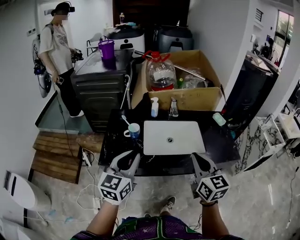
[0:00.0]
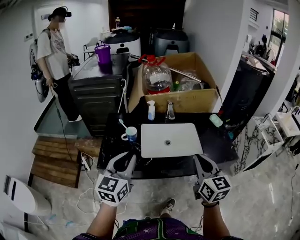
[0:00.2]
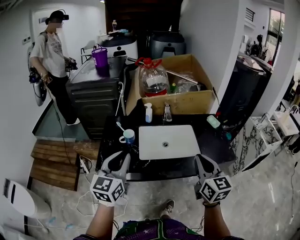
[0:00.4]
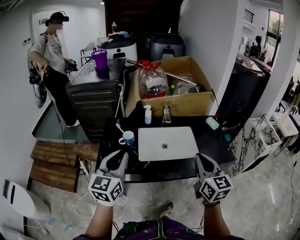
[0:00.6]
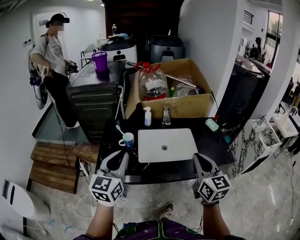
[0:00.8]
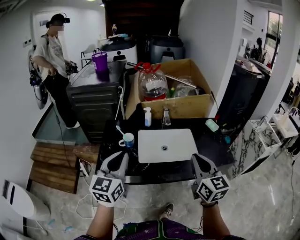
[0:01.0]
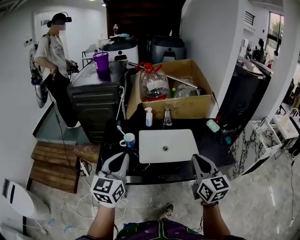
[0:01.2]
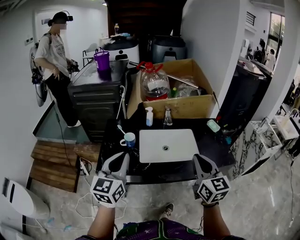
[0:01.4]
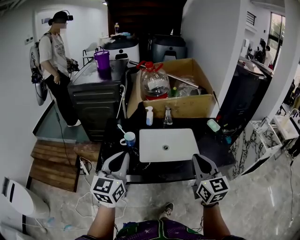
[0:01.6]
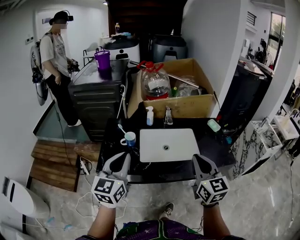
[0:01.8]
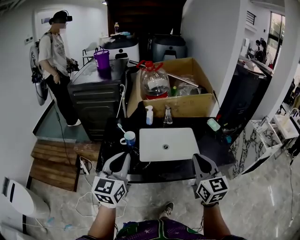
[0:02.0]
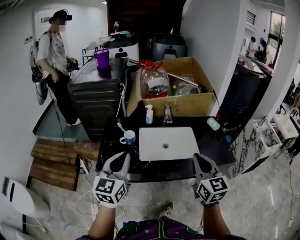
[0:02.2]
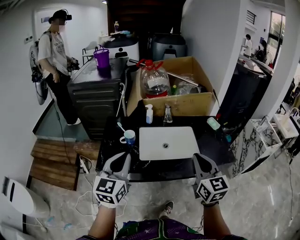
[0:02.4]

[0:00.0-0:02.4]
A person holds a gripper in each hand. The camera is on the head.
0:00.0 to 0:02.4: There are only small adjustments of the grippers.

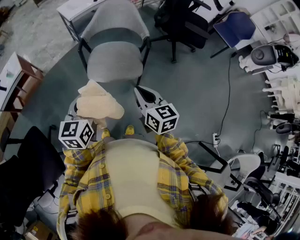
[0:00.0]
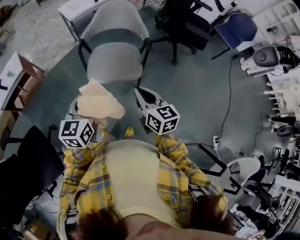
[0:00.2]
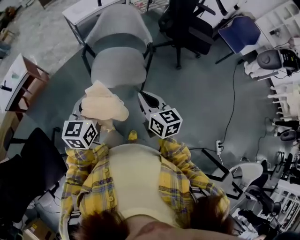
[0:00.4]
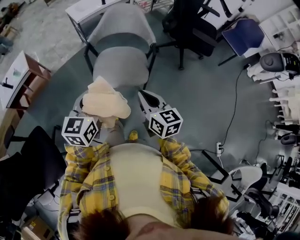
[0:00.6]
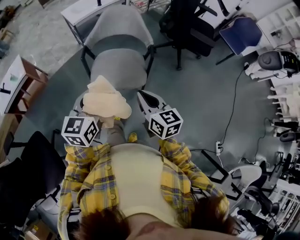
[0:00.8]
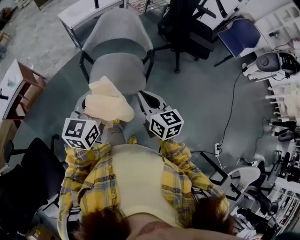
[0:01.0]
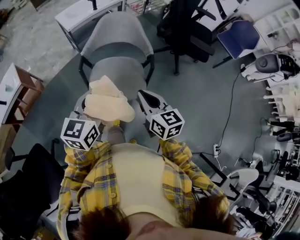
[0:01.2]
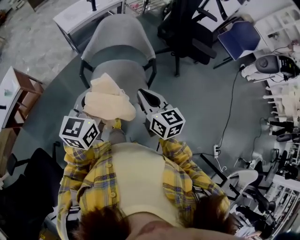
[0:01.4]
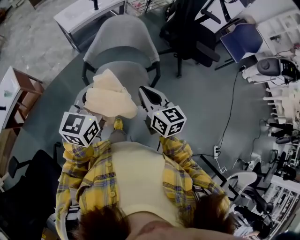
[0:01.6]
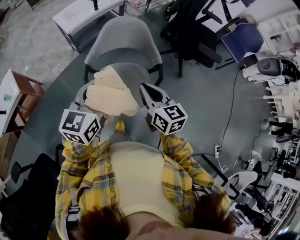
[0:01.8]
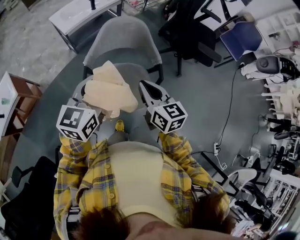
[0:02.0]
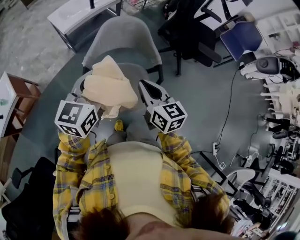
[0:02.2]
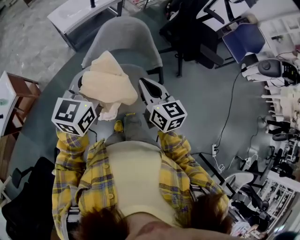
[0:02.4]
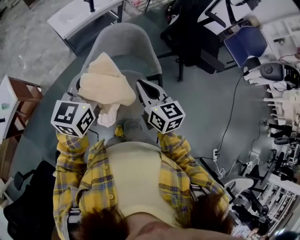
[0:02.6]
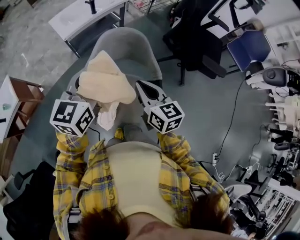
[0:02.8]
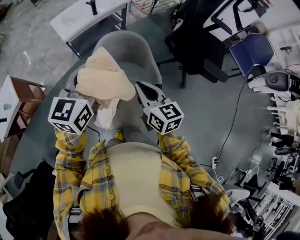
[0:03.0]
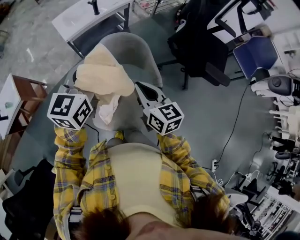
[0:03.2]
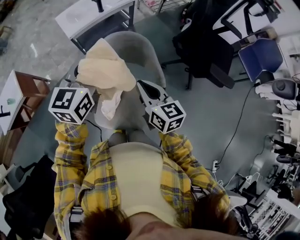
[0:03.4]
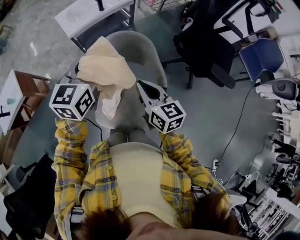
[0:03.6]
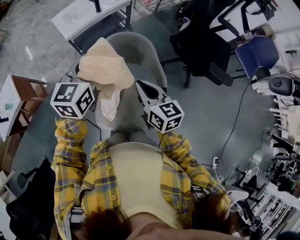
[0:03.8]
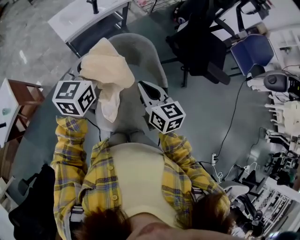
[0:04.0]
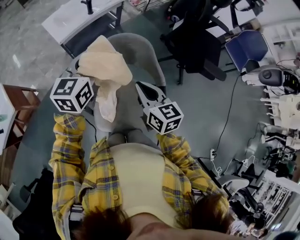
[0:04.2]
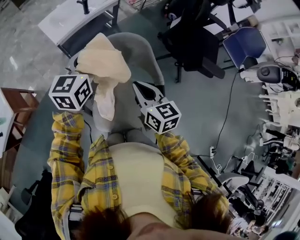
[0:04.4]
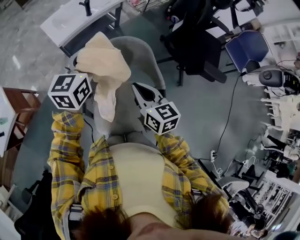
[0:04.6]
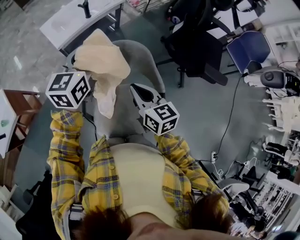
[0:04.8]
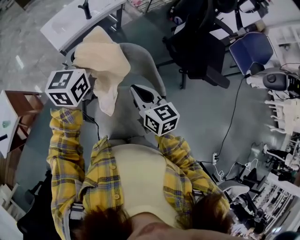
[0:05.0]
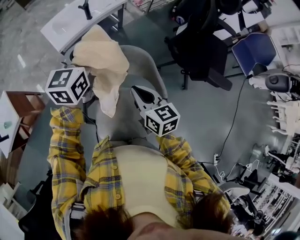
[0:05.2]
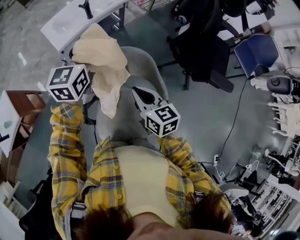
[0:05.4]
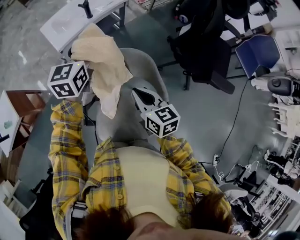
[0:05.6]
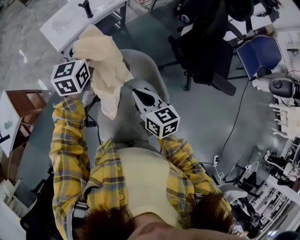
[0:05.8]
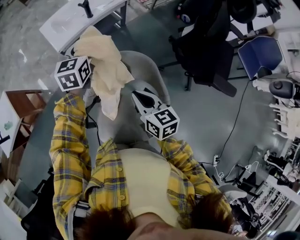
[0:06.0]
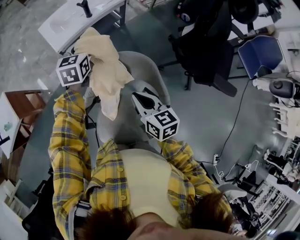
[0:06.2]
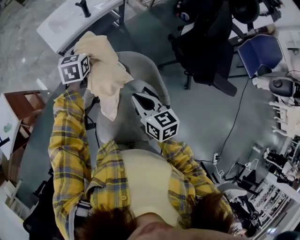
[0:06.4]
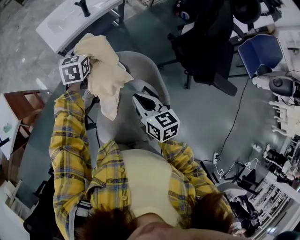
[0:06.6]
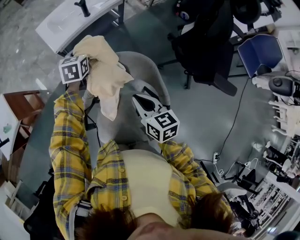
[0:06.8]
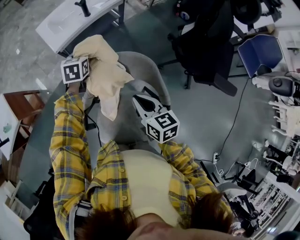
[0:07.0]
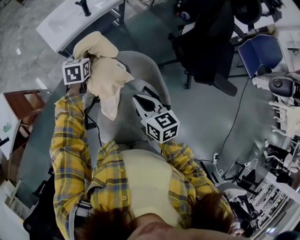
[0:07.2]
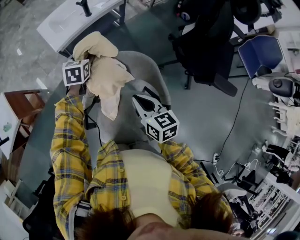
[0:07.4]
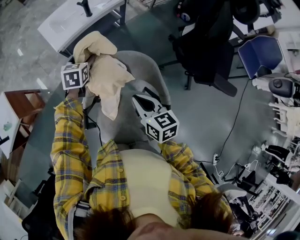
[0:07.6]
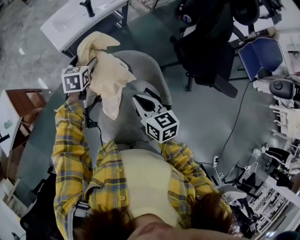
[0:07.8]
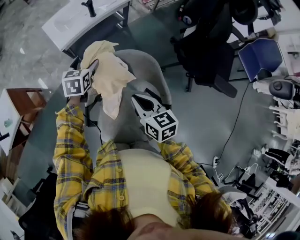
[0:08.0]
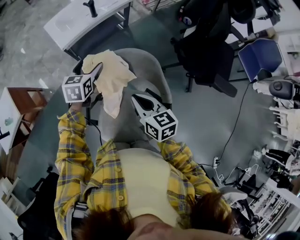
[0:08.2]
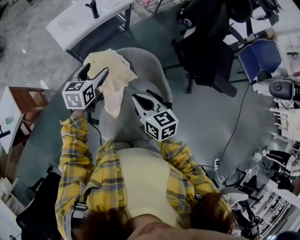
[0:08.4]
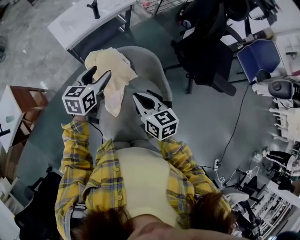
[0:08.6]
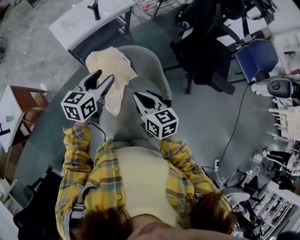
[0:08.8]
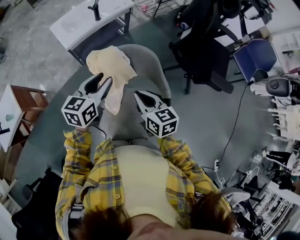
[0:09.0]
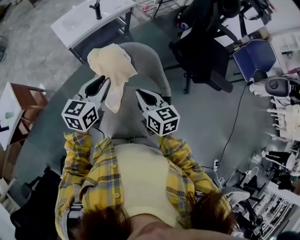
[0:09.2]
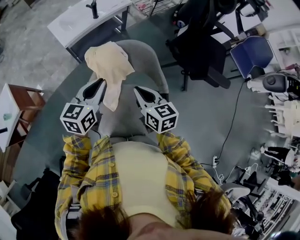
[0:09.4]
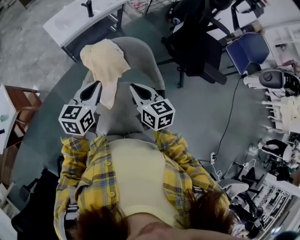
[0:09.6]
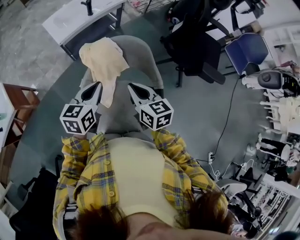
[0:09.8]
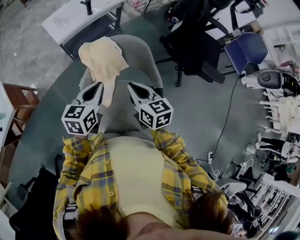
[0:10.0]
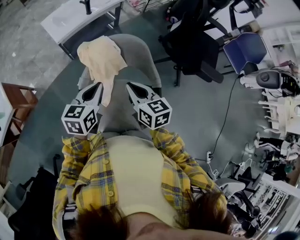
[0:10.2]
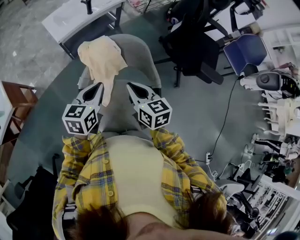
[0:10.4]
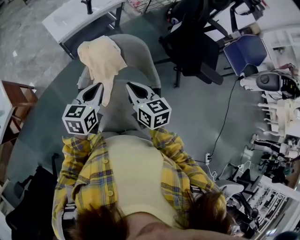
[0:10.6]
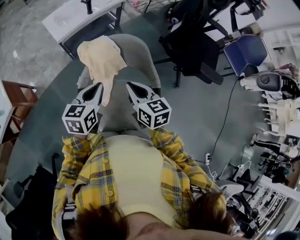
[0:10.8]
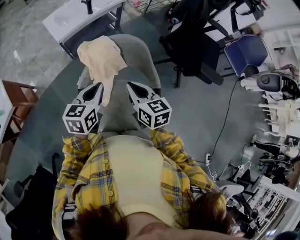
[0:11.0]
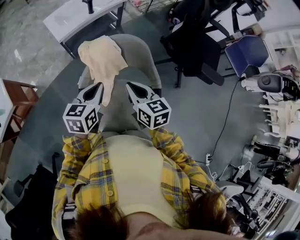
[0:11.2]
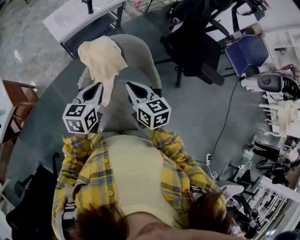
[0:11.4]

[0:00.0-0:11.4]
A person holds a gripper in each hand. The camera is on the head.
0:00.0 to 0:01.4: Both grippers move forward, some 20 cm.
0:01.4 to 0:02.8: The two grippers go about 20 cm forward.
0:02.8 to 0:04.2: The left gripper travels forward by roughly 15 cm. The right gripper moves forward, approximately 5 cm.
0:04.2 to 0:05.6: The right gripper is displaced forward by roughly 10 cm; the left gripper moves forward, about 15 cm.
0:05.6 to 0:07.2: The left gripper is displaced downward by roughly 20 cm, rotates about 30 degrees, and opens.
0:07.2 to 0:08.6: The left gripper heads backward and upward, covering roughly 20 cm, and changes its angle by some 20 degrees.
0:08.6 to 0:10.0: The left gripper is displaced backward by approximately 15 cm, and closes.
0:10.0 to 0:11.4: The two grippers keep their place.

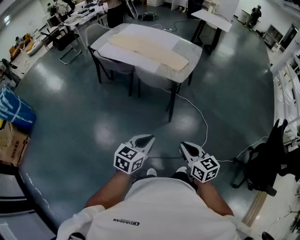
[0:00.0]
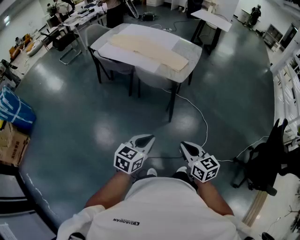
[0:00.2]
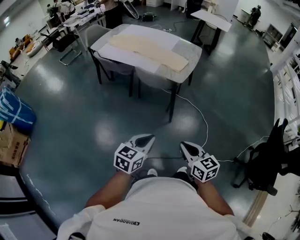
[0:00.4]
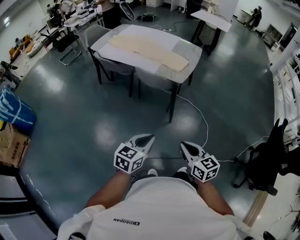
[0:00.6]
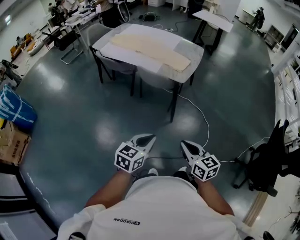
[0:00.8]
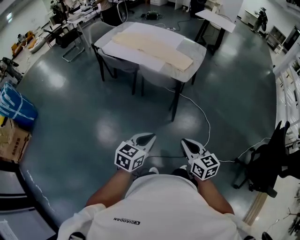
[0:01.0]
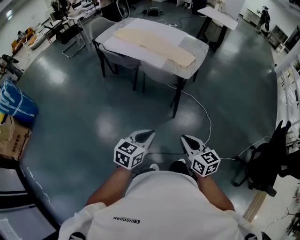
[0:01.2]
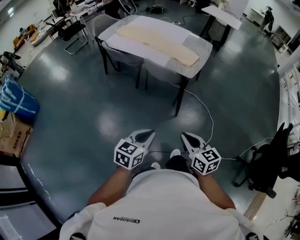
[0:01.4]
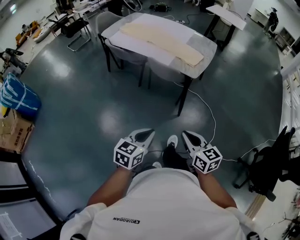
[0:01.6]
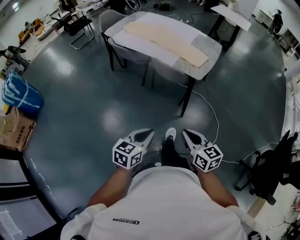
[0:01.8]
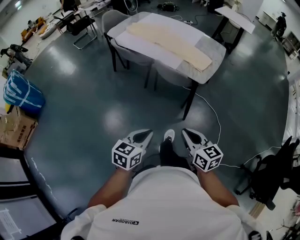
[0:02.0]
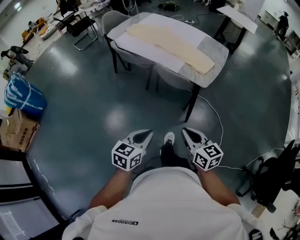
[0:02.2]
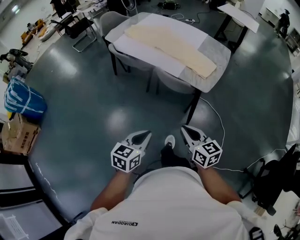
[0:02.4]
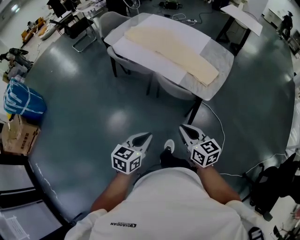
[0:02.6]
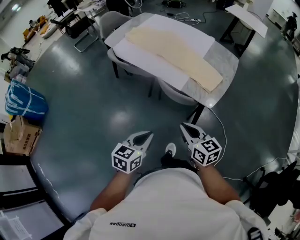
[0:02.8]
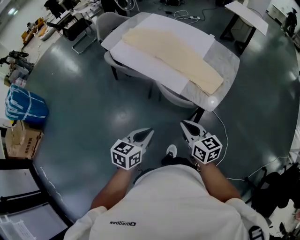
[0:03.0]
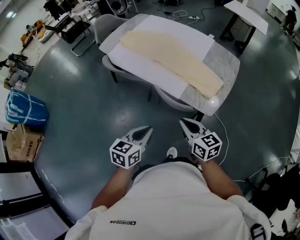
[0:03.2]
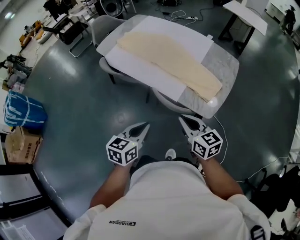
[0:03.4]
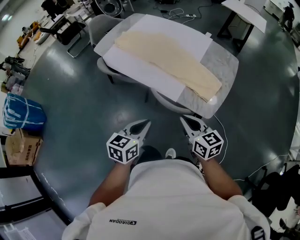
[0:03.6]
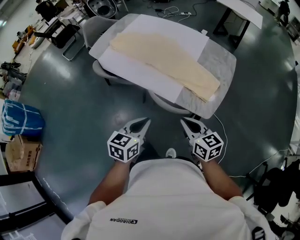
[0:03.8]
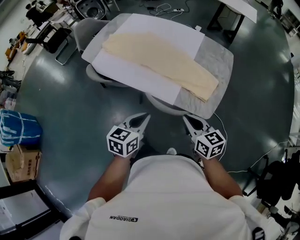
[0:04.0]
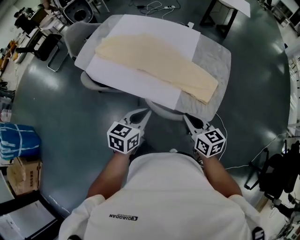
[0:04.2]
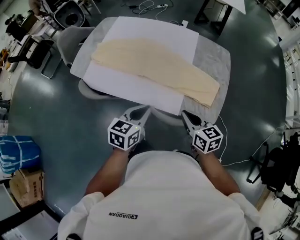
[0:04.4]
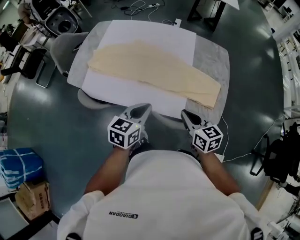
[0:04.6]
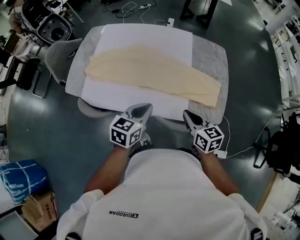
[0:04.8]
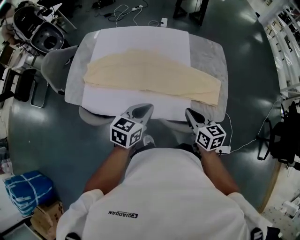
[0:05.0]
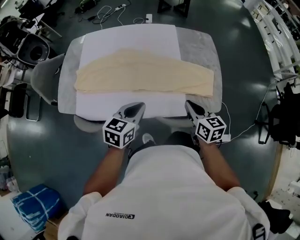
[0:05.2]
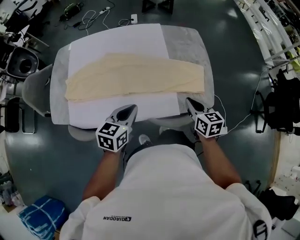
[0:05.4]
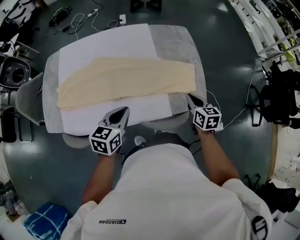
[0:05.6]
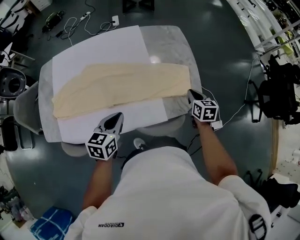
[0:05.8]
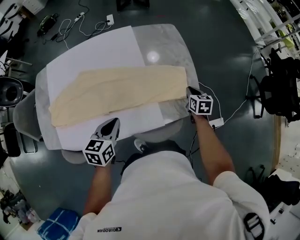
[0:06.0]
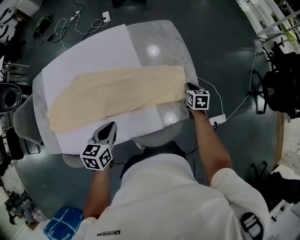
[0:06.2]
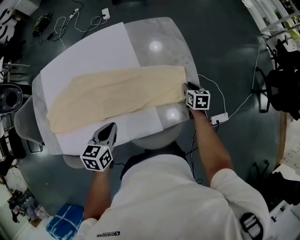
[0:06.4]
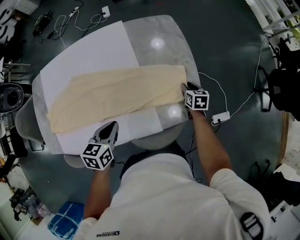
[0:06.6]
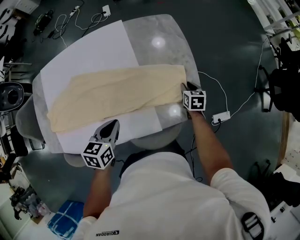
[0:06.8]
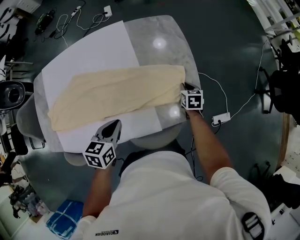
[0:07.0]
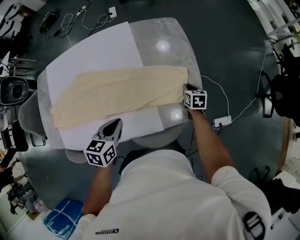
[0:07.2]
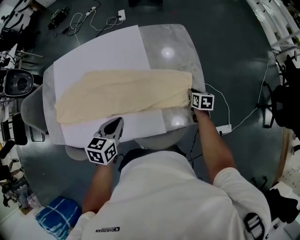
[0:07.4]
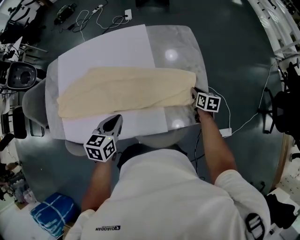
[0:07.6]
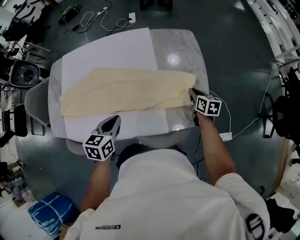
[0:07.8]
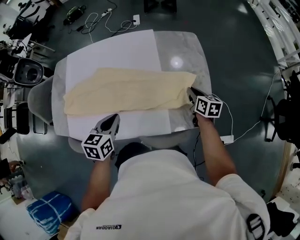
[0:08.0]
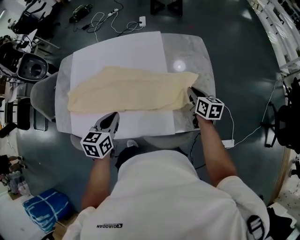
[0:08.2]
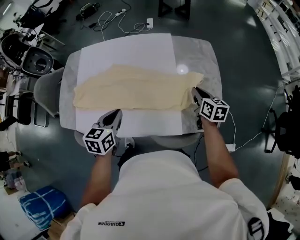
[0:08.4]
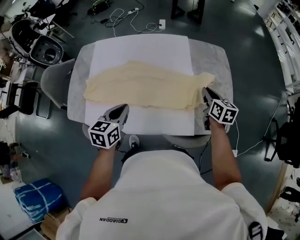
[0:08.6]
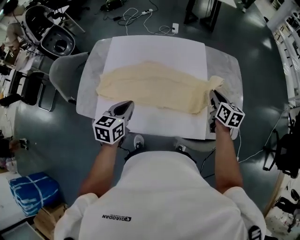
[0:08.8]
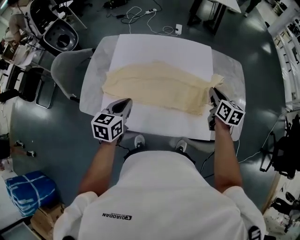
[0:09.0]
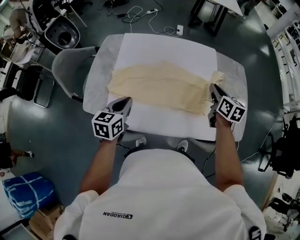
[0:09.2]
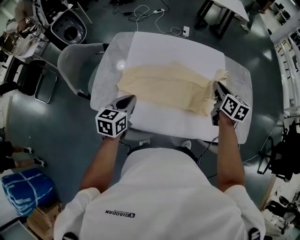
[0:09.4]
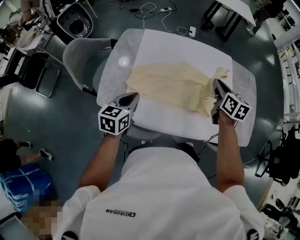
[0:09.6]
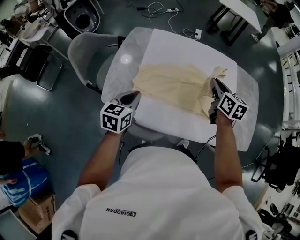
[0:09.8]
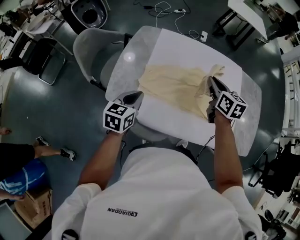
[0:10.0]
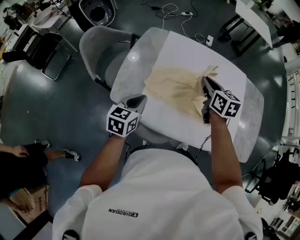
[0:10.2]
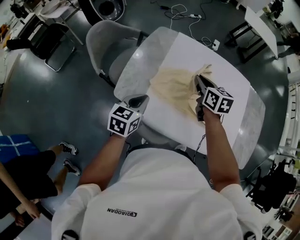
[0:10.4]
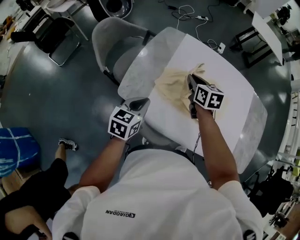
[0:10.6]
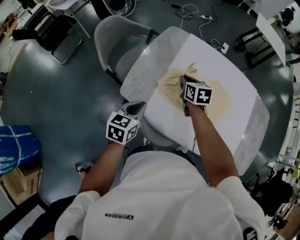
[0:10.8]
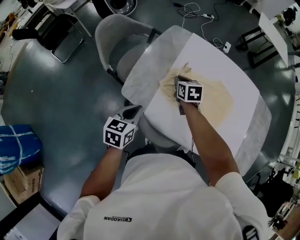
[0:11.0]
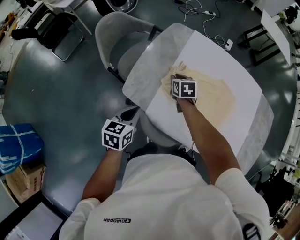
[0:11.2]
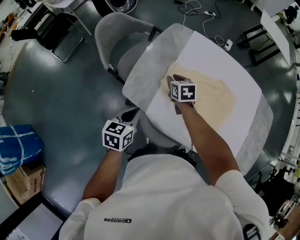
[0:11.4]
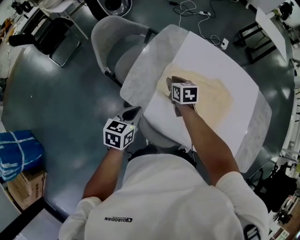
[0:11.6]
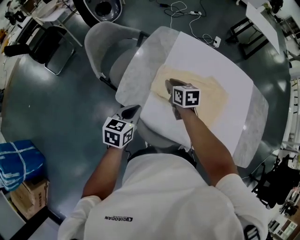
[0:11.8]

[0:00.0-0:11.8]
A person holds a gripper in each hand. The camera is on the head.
0:00.0 to 0:01.4: The right gripper shifts roughly 5 cm to the left; the left gripper shifts by roughly 5 cm.
0:01.4 to 0:03.0: The two grippers go some 40 cm forward.
0:03.0 to 0:04.4: The two grippers go approximately 30 cm forward.
0:04.4 to 0:06.0: The right gripper changes place by some 30 cm, and turns by about 50 degrees, while the left gripper shifts by approximately 20 cm, and changes its angle by some 20 degrees.
0:06.0 to 0:07.4: The right gripper is displaced downward and forward by about 10 cm, and opens and closes again.
0:07.4 to 0:08.8: The right gripper shifts roughly 35 cm to the left and upward, and turns by some 20 degrees. The left gripper goes some 25 cm to the left.
0:08.8 to 0:10.4: The right gripper moves to the left, some 50 cm, and changes its angle by some 30 degrees, while the left gripper moves to the left, some 35 cm.
0:10.4 to 0:11.8: The right gripper travels to the left and downward by about 15 cm. Meanwhile the left gripper goes some 5 cm to the left.
